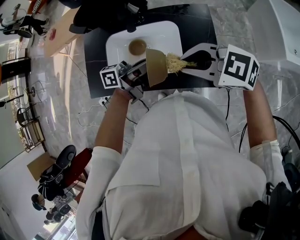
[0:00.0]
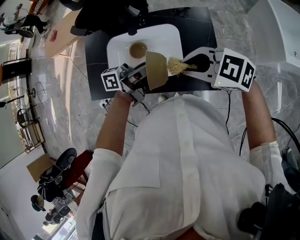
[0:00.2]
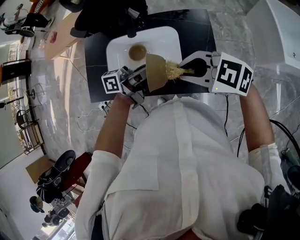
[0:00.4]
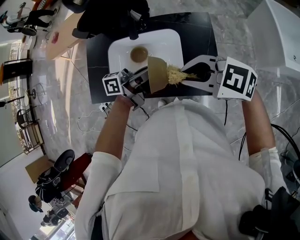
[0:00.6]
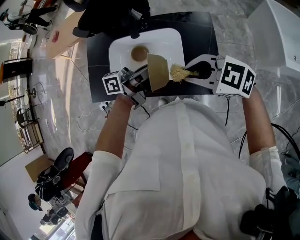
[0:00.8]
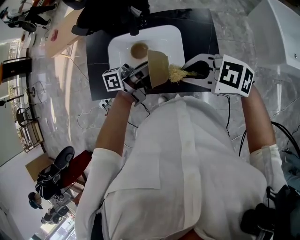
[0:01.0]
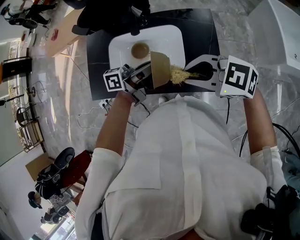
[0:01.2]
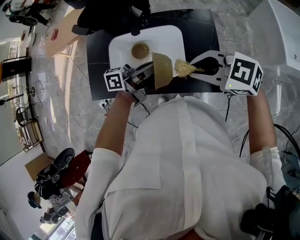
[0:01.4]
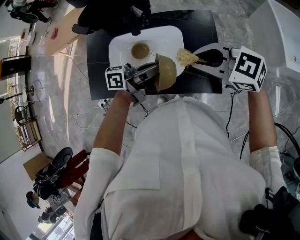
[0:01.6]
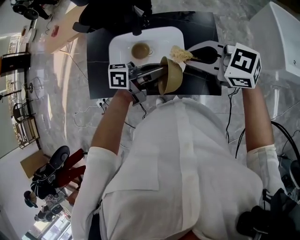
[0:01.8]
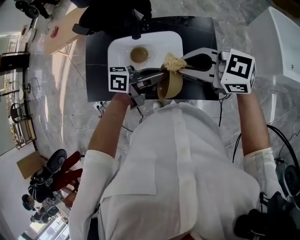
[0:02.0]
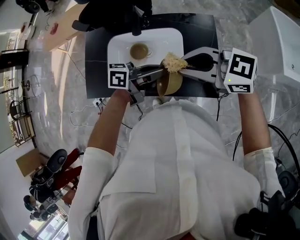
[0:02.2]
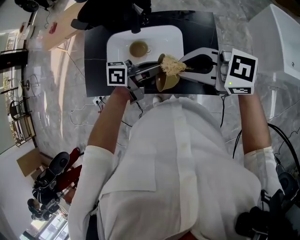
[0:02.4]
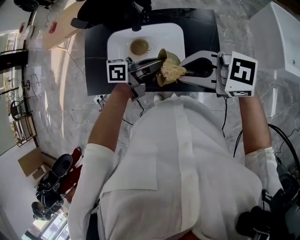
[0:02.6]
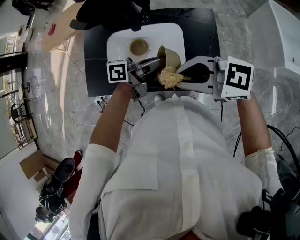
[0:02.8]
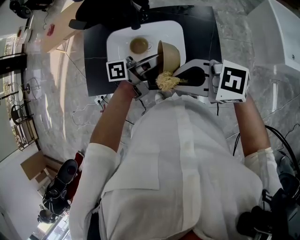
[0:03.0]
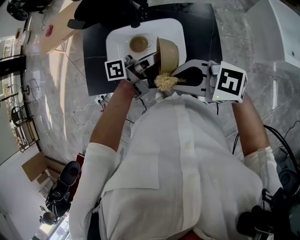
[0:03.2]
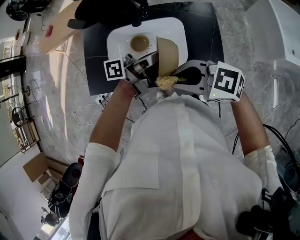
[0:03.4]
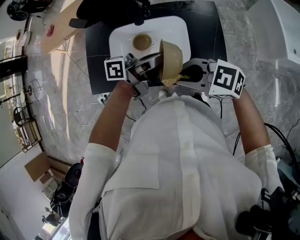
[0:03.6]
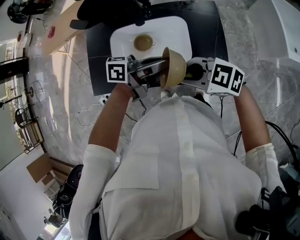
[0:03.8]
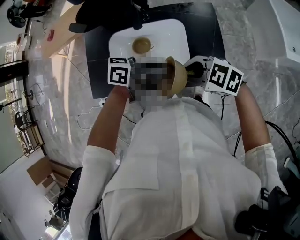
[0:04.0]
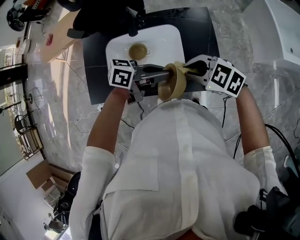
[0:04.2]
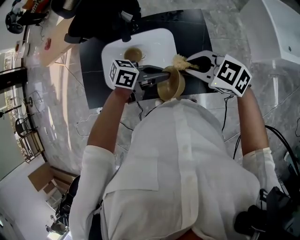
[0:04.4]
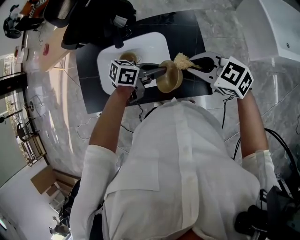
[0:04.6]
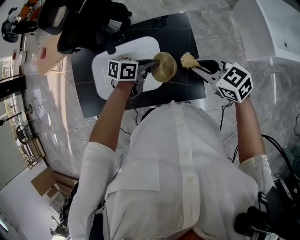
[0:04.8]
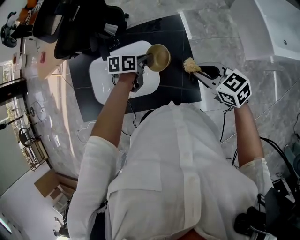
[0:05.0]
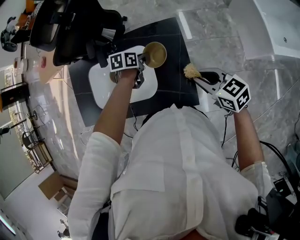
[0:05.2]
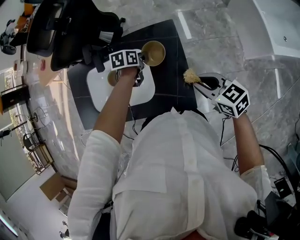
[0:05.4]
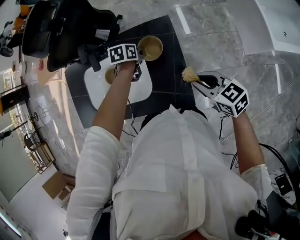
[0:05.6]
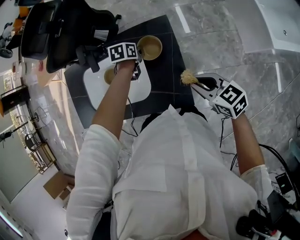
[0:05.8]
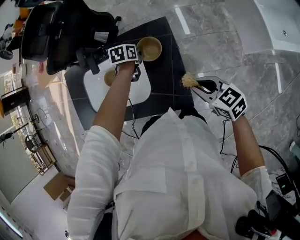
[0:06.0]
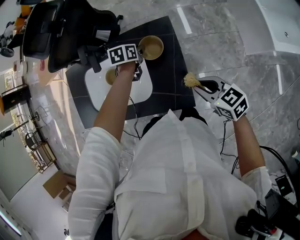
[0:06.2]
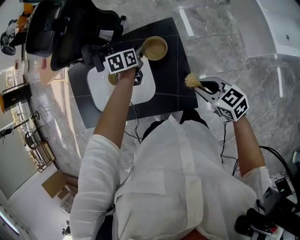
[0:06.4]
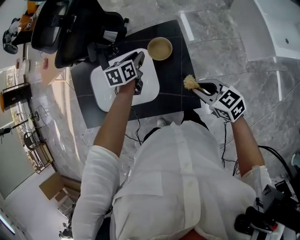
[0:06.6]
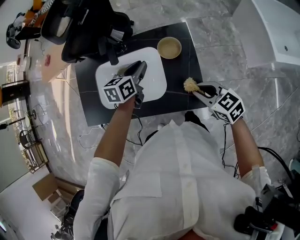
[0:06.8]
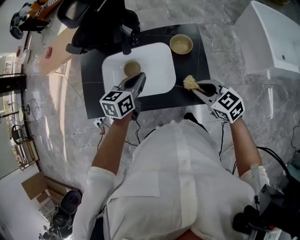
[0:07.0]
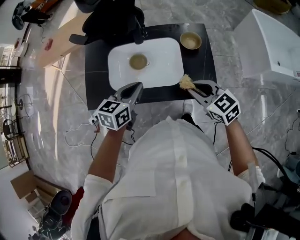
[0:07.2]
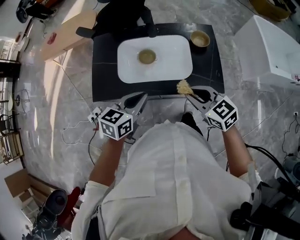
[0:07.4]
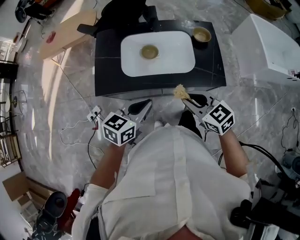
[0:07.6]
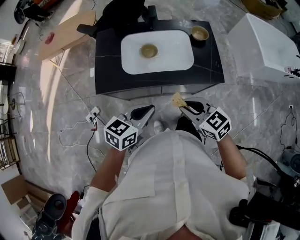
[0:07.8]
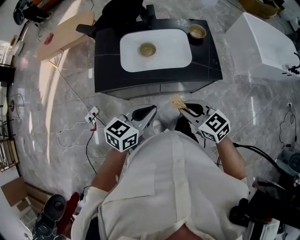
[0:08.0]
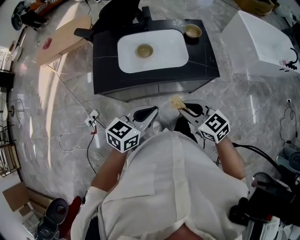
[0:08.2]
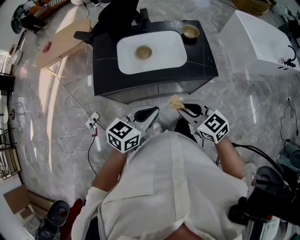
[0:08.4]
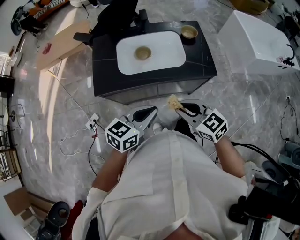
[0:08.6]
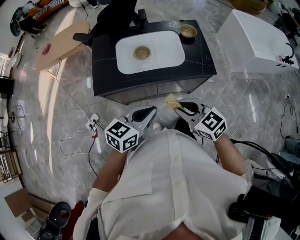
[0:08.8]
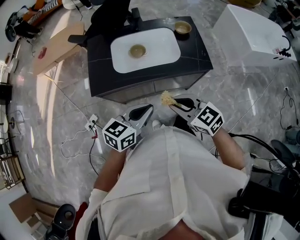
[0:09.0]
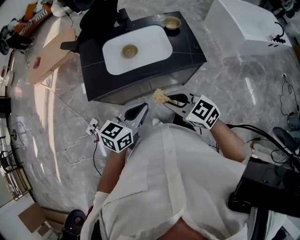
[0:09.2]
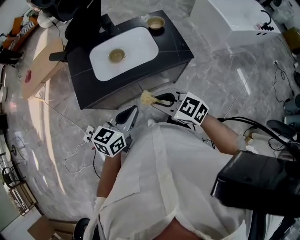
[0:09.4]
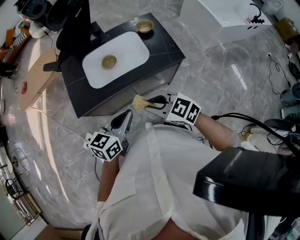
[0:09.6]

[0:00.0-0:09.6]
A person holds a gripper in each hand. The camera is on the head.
0:00.0 to 0:01.6: The grippers move only a little.
0:01.6 to 0:03.2: The right gripper ends up some 10 cm from where it was.
0:03.2 to 0:04.8: The right gripper shifts by about 25 cm, and rotates about 40 degrees. The left gripper moves downward, about 10 cm, and points its fingers some 40 degrees further downward.
0:04.8 to 0:06.4: The right gripper ends up roughly 10 cm from where it was. Meanwhile the left gripper shifts by about 15 cm, and changes its angle by some 30 degrees.
0:06.4 to 0:08.0: The pair of grippers is taken backward and to the left, roughly 50 cm. The left gripper points its fingers roughly 30 degrees further upward, and closes its fingers.
0:08.0 to 0:09.6: There are only small adjustments of the grippers.

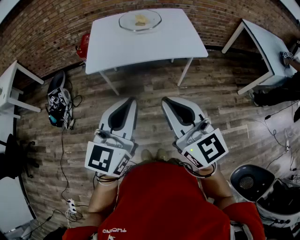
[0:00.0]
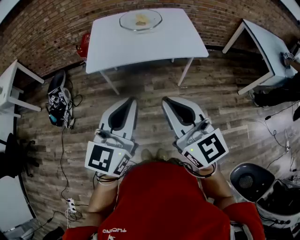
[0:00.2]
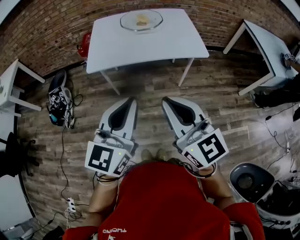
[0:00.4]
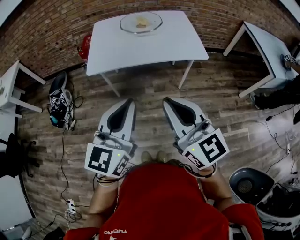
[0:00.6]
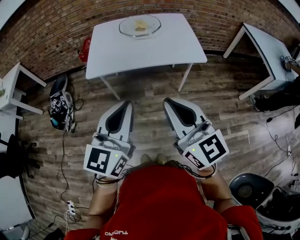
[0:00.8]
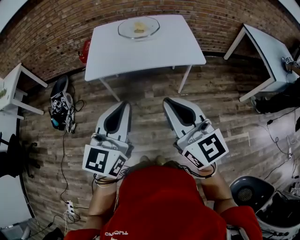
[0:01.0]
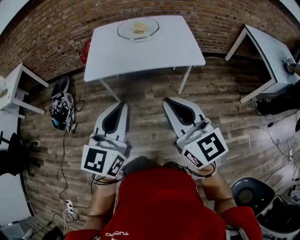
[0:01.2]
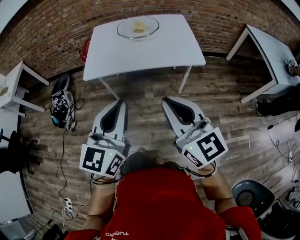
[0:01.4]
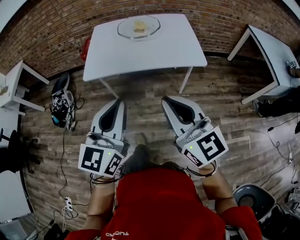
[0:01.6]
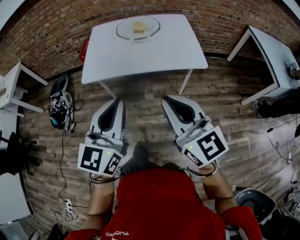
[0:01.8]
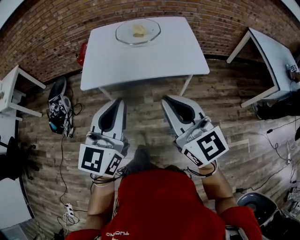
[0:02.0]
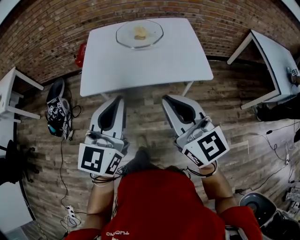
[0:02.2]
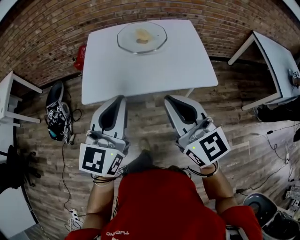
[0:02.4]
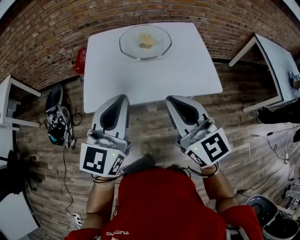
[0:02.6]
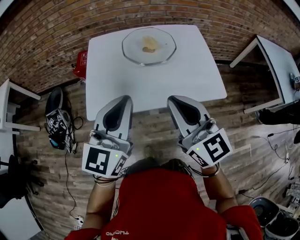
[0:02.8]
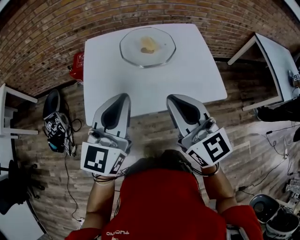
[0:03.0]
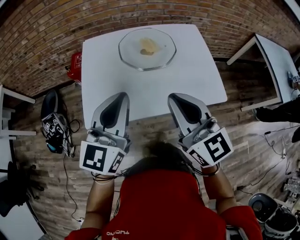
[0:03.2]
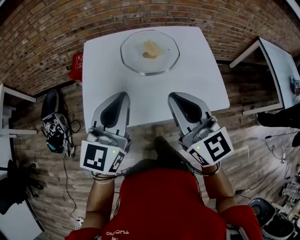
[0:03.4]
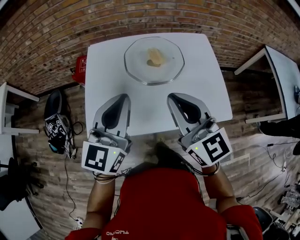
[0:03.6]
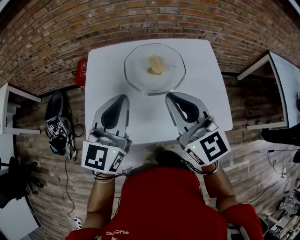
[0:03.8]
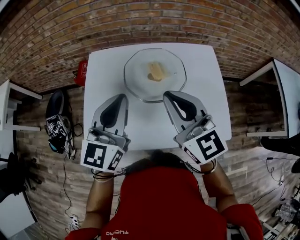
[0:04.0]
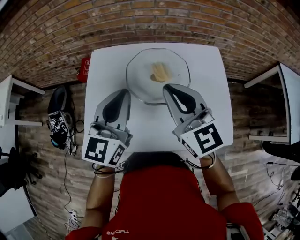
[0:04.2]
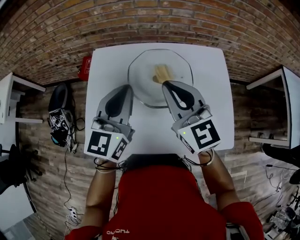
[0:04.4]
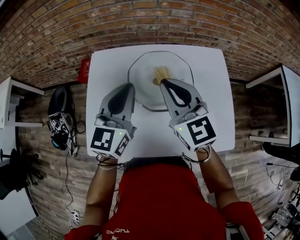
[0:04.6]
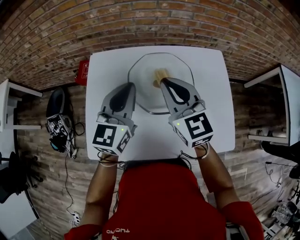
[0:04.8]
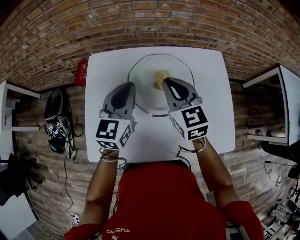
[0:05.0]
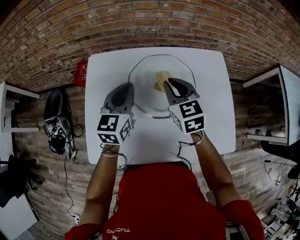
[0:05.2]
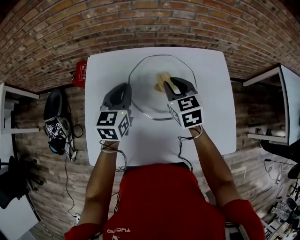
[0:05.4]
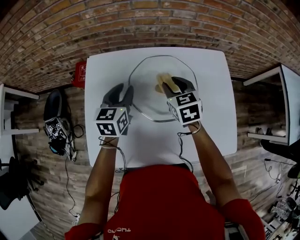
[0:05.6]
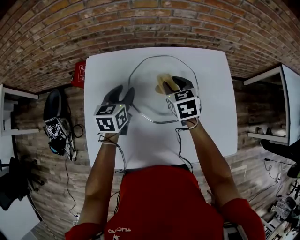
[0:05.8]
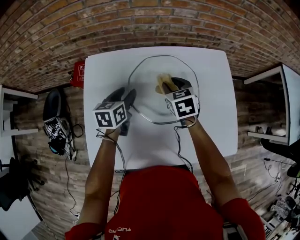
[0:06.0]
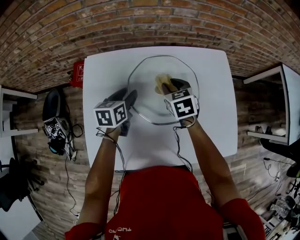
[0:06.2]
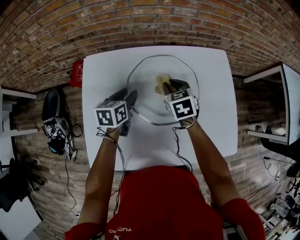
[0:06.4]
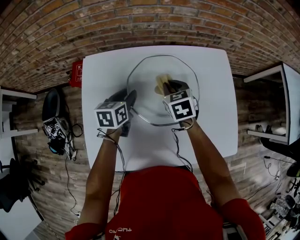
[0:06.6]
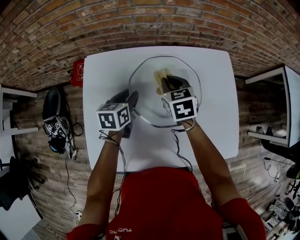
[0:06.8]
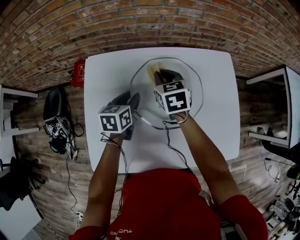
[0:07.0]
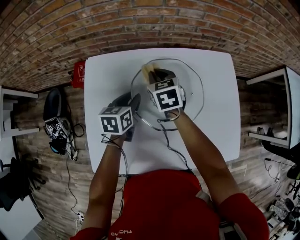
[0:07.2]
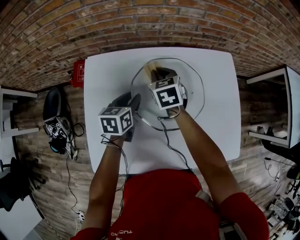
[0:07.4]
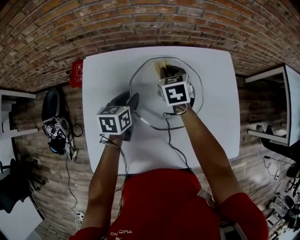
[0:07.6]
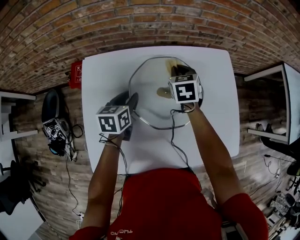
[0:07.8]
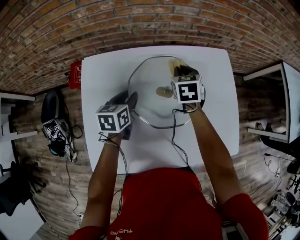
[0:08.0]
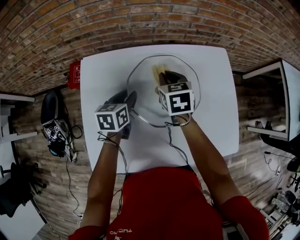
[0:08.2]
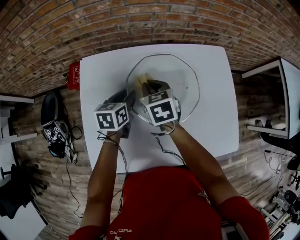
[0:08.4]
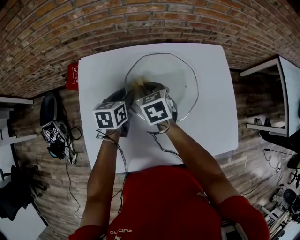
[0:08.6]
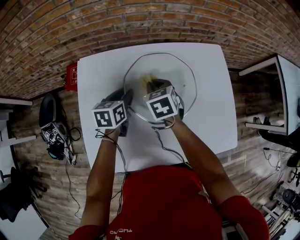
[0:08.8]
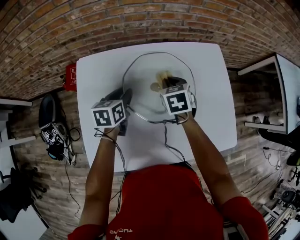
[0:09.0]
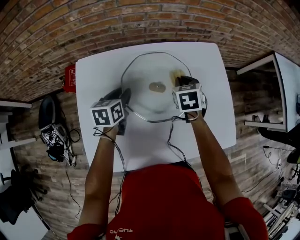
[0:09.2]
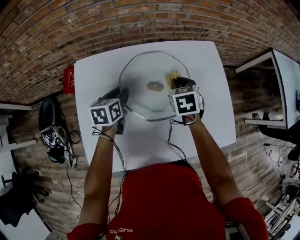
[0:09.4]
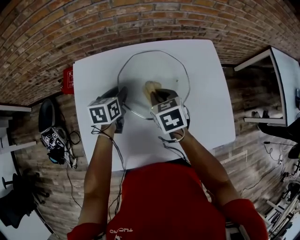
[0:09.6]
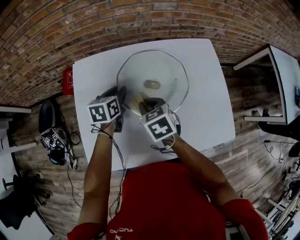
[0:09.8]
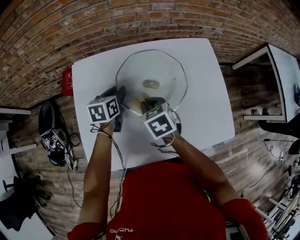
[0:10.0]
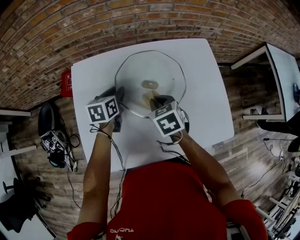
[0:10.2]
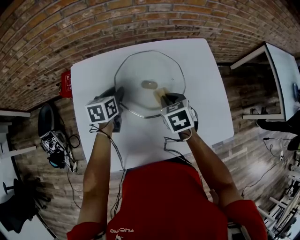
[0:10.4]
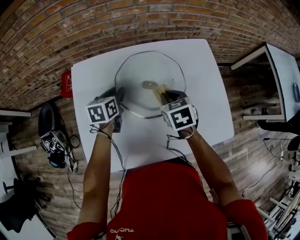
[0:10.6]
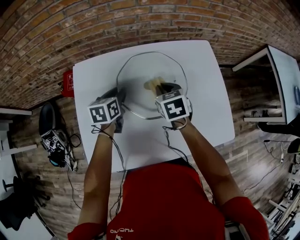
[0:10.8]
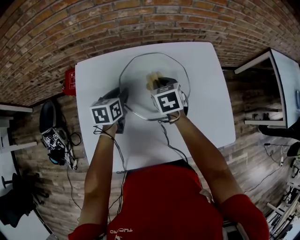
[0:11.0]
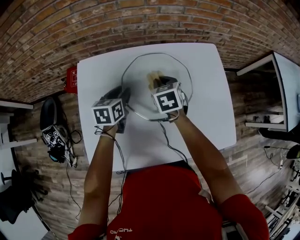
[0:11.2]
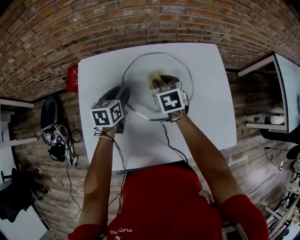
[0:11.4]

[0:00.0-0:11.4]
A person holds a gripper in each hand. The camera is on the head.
0:00.0 to 0:01.4: The right gripper moves to the right, approximately 10 cm; the left gripper changes place by roughly 5 cm.
0:01.4 to 0:02.8: The grippers both shift forward by some 30 cm.
0:02.8 to 0:04.2: Both grippers travel together forward, approximately 25 cm.
0:04.2 to 0:05.6: The grippers both shift downward and forward by some 25 cm. The right gripper points its fingers some 30 degrees further downward, and opens up; the left gripper turns by some 30 degrees, and opens up.
0:05.6 to 0:07.2: The right gripper shifts roughly 10 cm to the left and forward, and closes up; the left gripper goes about 10 cm downward.
0:07.2 to 0:08.6: The right gripper is displaced backward by about 5 cm, and reaches some 10 cm to the right, then returns.
0:08.6 to 0:10.0: The right gripper shifts roughly 10 cm backward, and travels to the right and back again, about 15 cm each way.
0:10.0 to 0:11.4: The right gripper shifts some 10 cm forward.

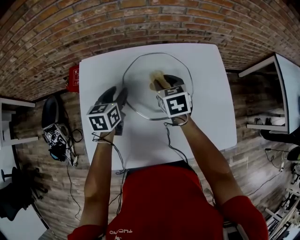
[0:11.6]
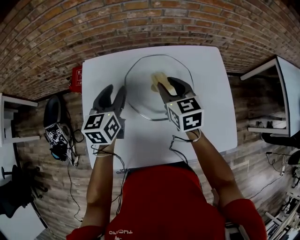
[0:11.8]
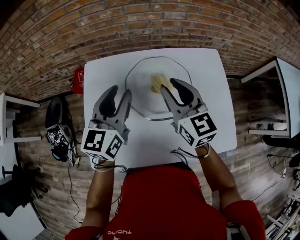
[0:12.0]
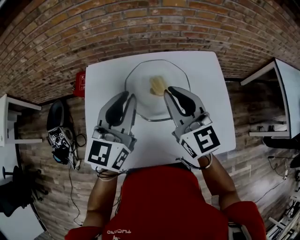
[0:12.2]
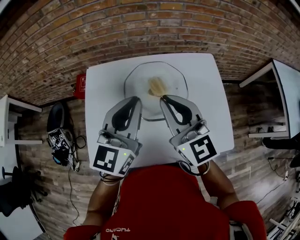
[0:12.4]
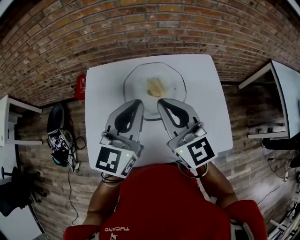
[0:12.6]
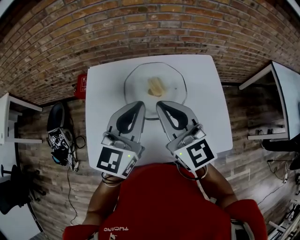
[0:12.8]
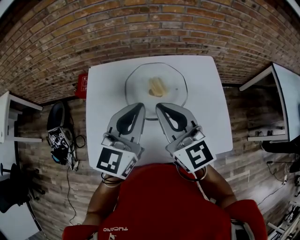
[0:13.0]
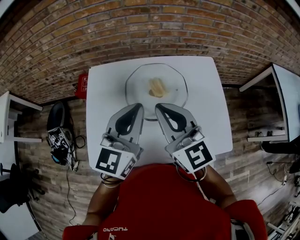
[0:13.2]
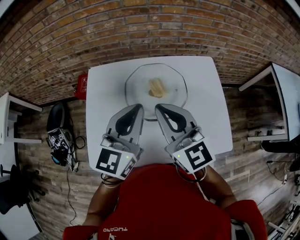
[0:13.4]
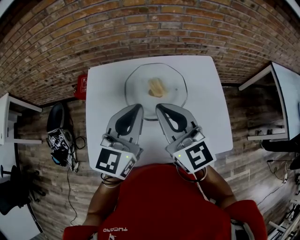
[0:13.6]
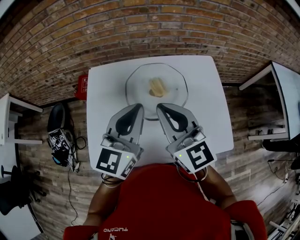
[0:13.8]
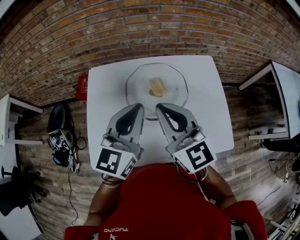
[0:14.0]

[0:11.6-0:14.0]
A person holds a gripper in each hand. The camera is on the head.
0:11.6 to 0:12.8: The left gripper heads upward, backward and to the right, covering approximately 30 cm, changes its angle by roughly 30 degrees, and closes up. The right gripper travels upward and backward by about 25 cm, tilts its fingers about 40 degrees upward, and closes its fingers.
0:12.8 to 0:14.0: There are only small adjustments of the grippers.
